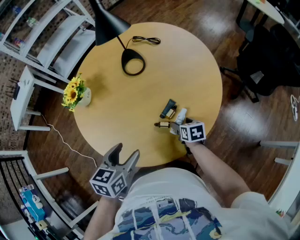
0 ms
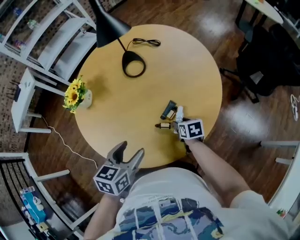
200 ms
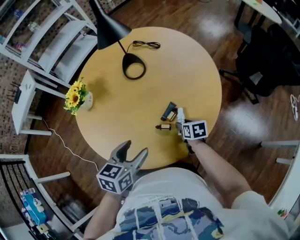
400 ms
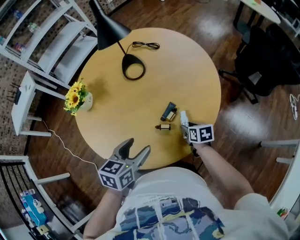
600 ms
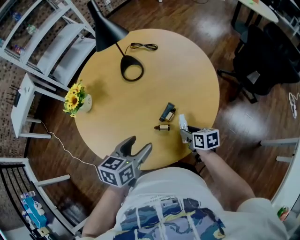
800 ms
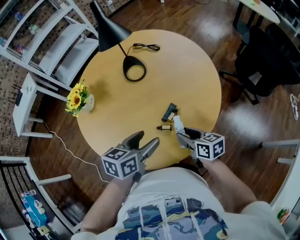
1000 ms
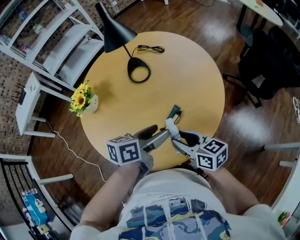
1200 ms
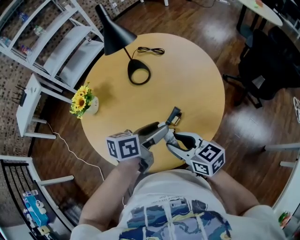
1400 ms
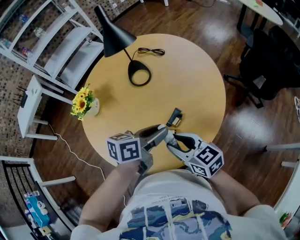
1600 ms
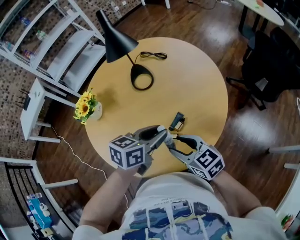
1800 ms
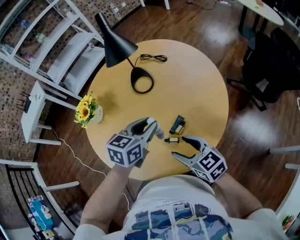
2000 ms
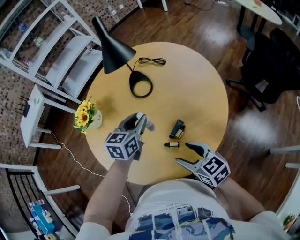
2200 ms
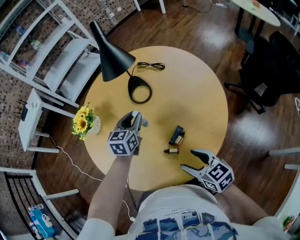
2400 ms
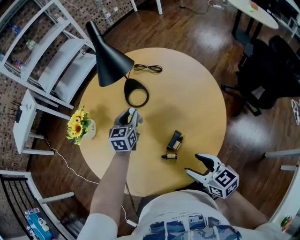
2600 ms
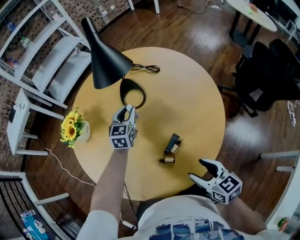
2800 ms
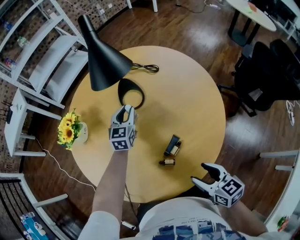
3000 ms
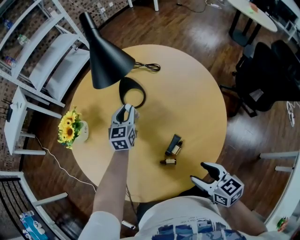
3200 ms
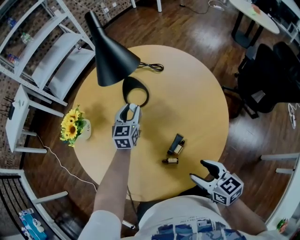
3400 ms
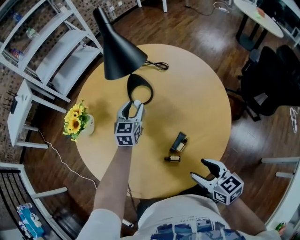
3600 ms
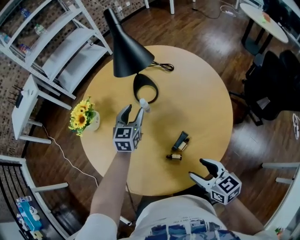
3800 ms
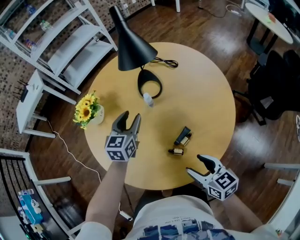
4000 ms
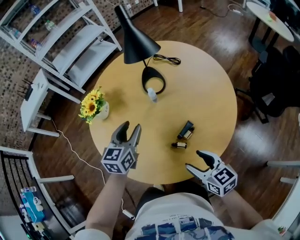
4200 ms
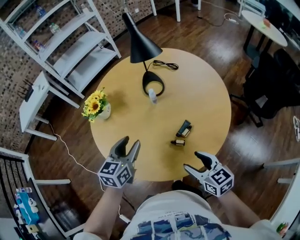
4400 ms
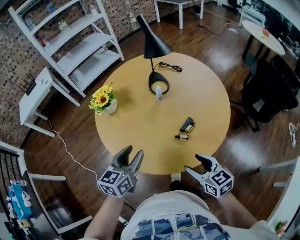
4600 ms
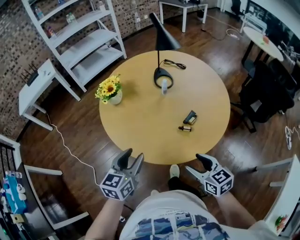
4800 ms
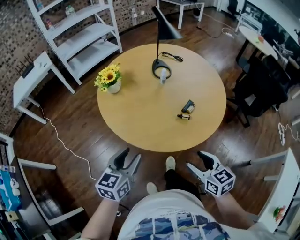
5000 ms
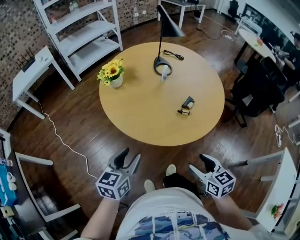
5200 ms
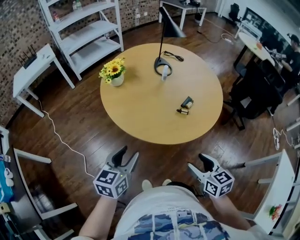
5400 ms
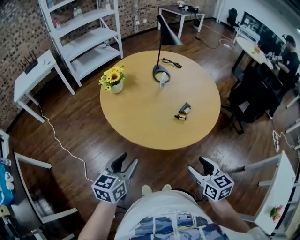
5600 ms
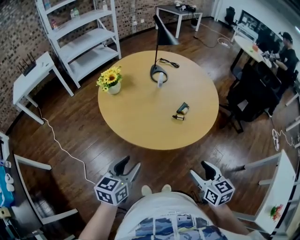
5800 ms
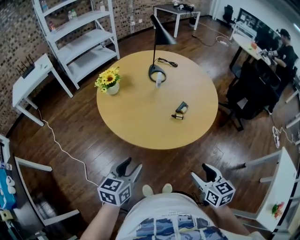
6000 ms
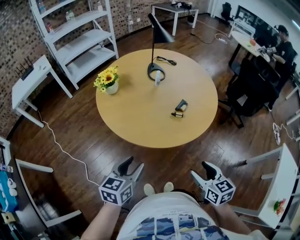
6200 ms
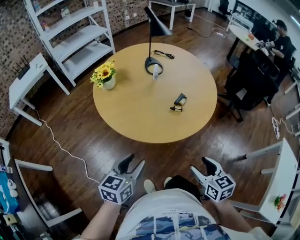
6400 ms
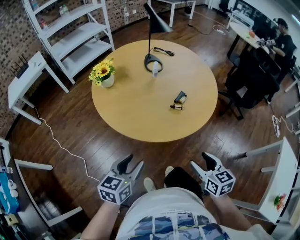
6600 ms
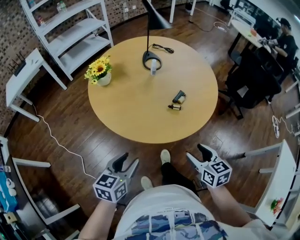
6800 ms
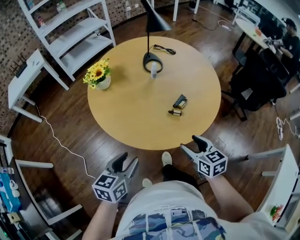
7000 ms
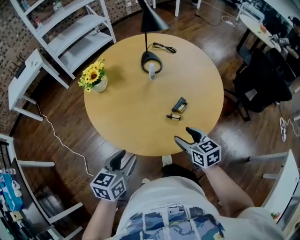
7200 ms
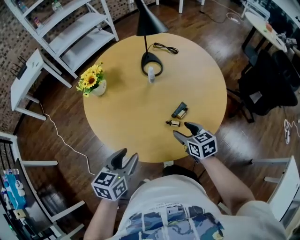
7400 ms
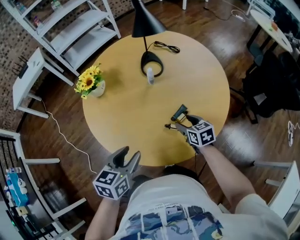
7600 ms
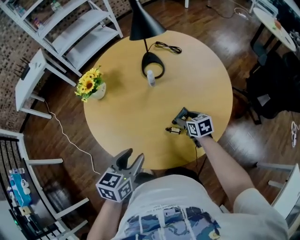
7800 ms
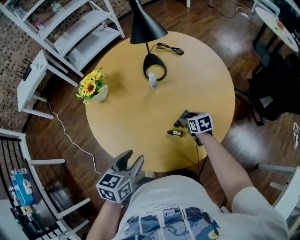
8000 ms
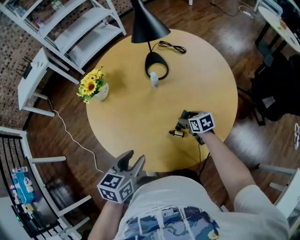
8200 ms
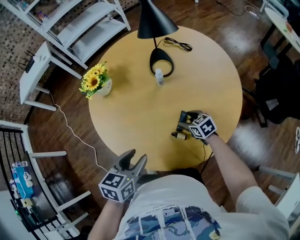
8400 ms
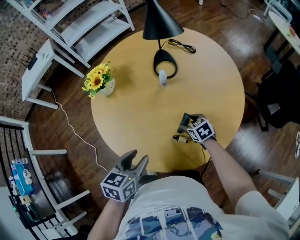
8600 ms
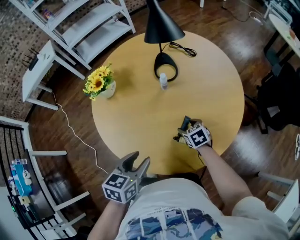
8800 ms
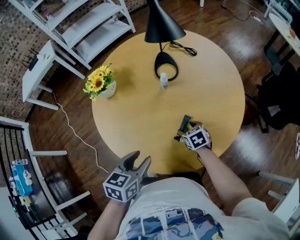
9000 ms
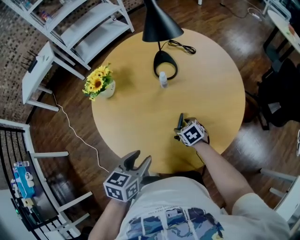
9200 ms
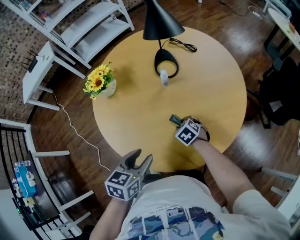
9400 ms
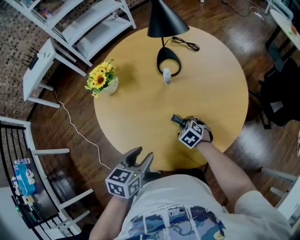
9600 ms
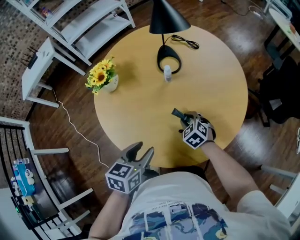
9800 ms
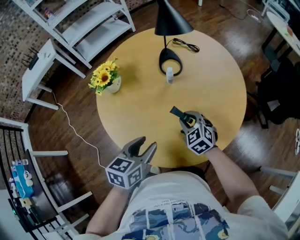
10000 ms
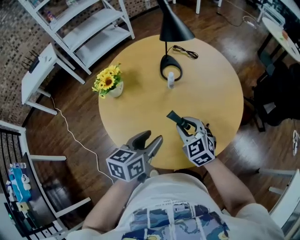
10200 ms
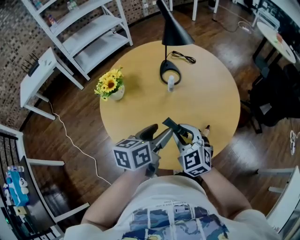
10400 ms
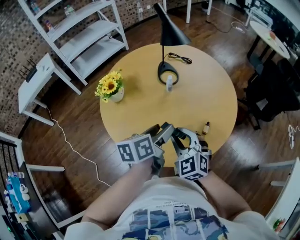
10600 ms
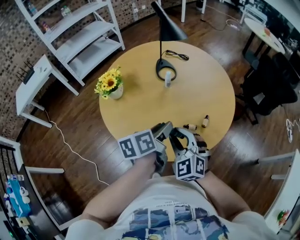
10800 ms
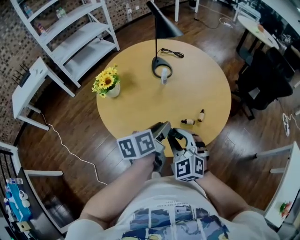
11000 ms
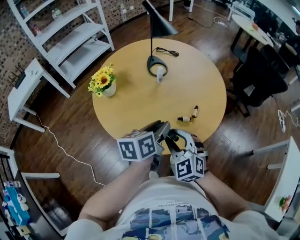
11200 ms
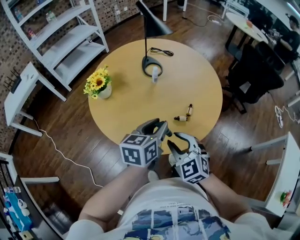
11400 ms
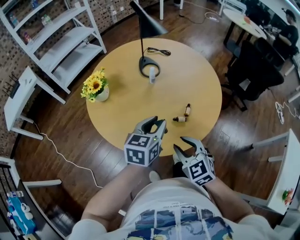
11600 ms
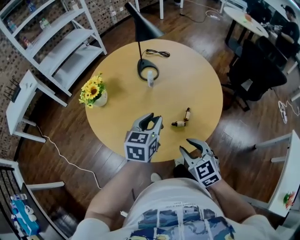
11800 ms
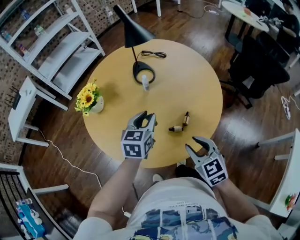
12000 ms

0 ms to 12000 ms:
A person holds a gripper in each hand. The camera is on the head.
0 ms to 1600 ms: The left gripper shifts some 15 cm to the right and forward, swivels roughly 30 degrees, and closes its fingers, while the right gripper goes about 20 cm upward, tilts its fingers some 30 degrees upward, and closes.
1600 ms to 3000 ms: The right gripper travels to the right and downward by about 10 cm, and opens; the left gripper is displaced forward by some 30 cm, and changes its angle by some 50 degrees.
3000 ms to 4400 ms: The right gripper is displaced to the left by some 10 cm. Meanwhile the left gripper heads backward, to the left and upward, covering approximately 35 cm.
4400 ms to 6000 ms: The two grippers go some 30 cm backward.
6000 ms to 7600 ms: The right gripper is displaced forward by approximately 40 cm, while the left gripper moves forward and to the right, roughly 25 cm.
7600 ms to 9000 ms: The right gripper heads downward, covering approximately 10 cm.
9000 ms to 10400 ms: The right gripper heads upward and to the left, covering approximately 25 cm, changes its angle by roughly 40 degrees, and closes its fingers. Meanwhile the left gripper is displaced upward by some 5 cm, and changes its angle by approximately 20 degrees.
10400 ms to 12000 ms: The left gripper shifts about 5 cm forward, rotates some 30 degrees, and closes its fingers. Meanwhile the right gripper heads to the right and backward, covering some 15 cm, and changes its angle by roughly 20 degrees.

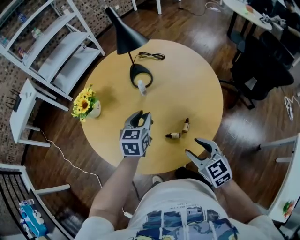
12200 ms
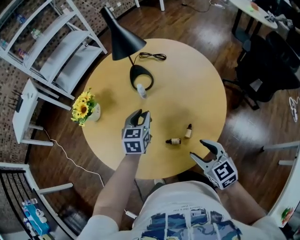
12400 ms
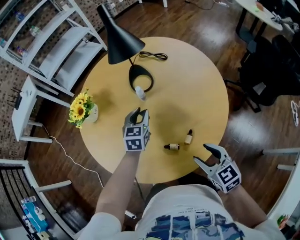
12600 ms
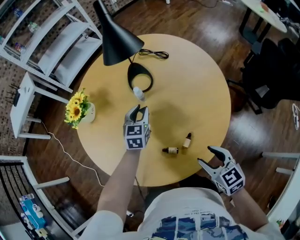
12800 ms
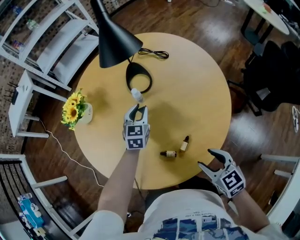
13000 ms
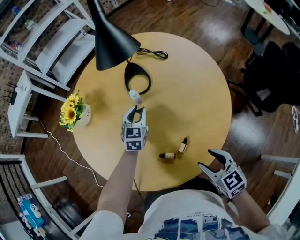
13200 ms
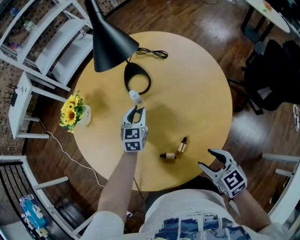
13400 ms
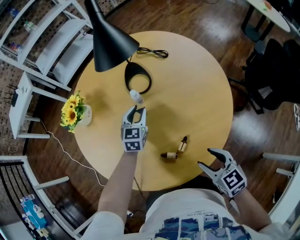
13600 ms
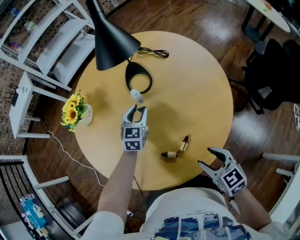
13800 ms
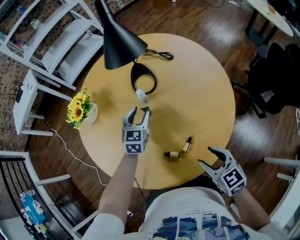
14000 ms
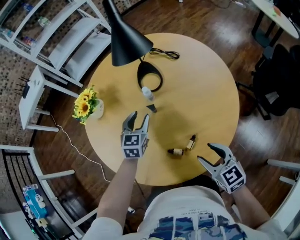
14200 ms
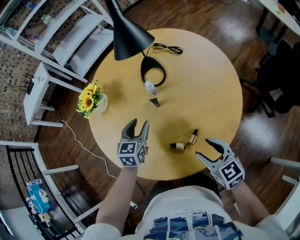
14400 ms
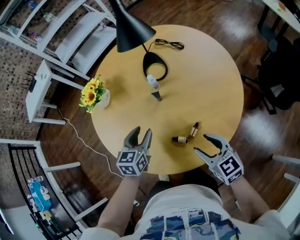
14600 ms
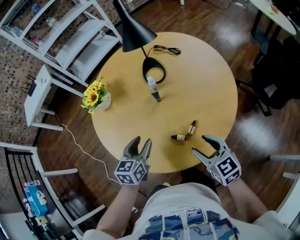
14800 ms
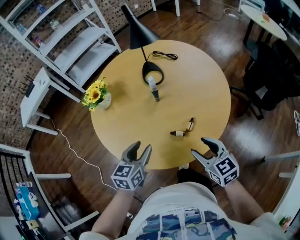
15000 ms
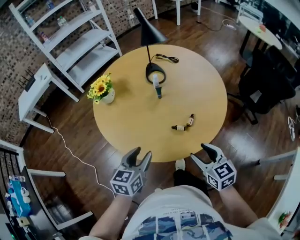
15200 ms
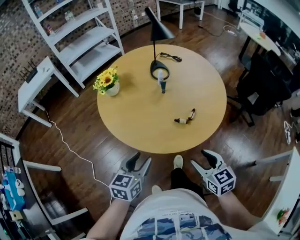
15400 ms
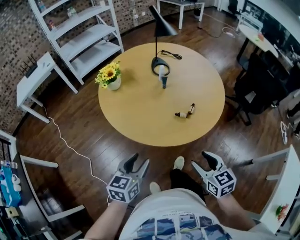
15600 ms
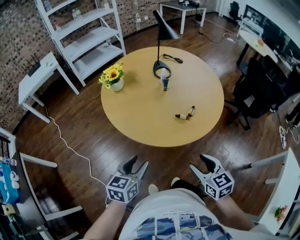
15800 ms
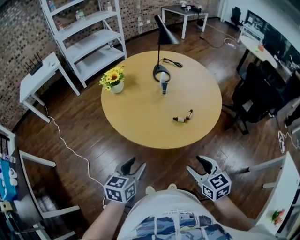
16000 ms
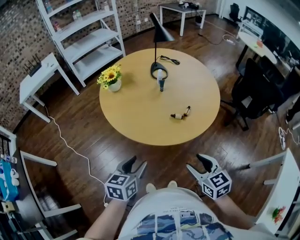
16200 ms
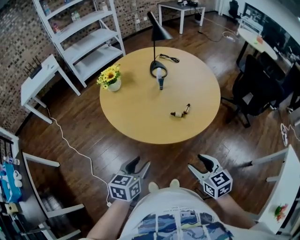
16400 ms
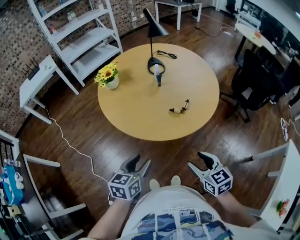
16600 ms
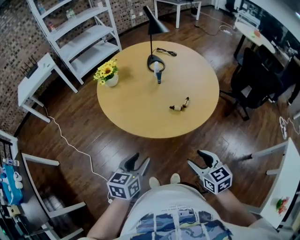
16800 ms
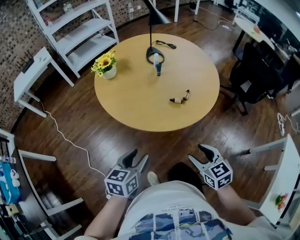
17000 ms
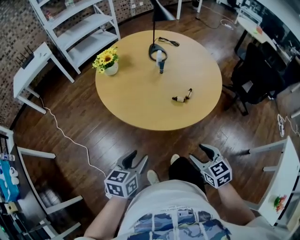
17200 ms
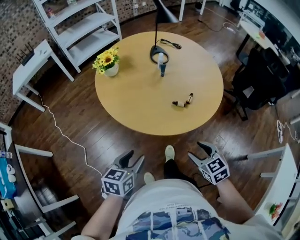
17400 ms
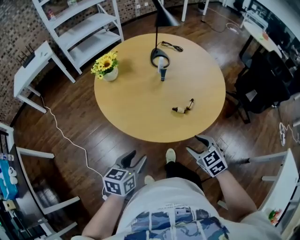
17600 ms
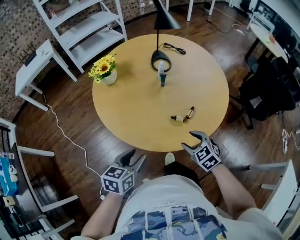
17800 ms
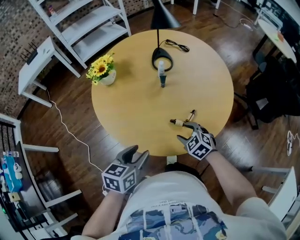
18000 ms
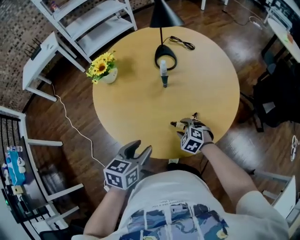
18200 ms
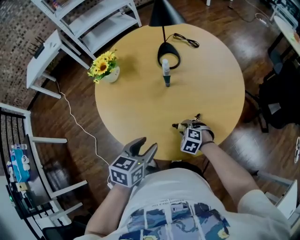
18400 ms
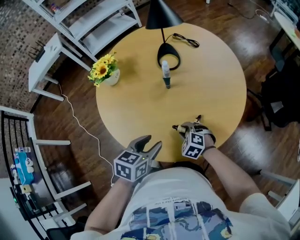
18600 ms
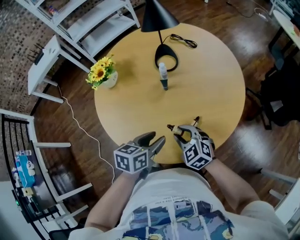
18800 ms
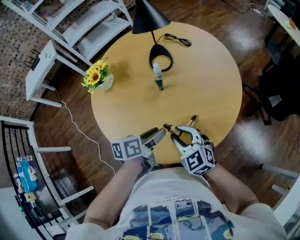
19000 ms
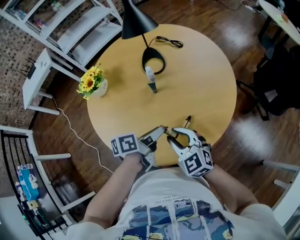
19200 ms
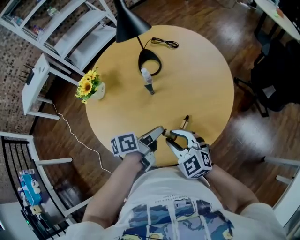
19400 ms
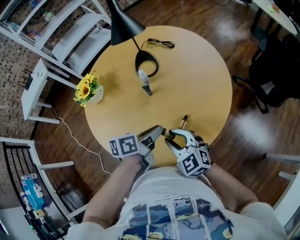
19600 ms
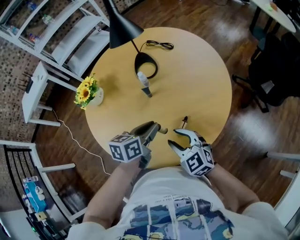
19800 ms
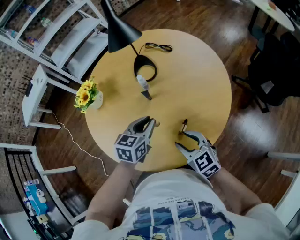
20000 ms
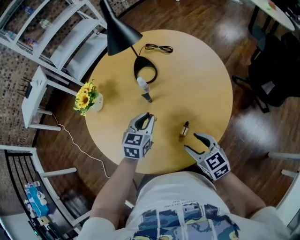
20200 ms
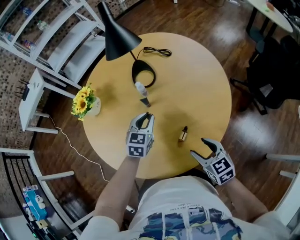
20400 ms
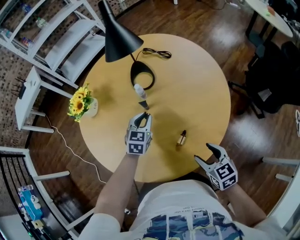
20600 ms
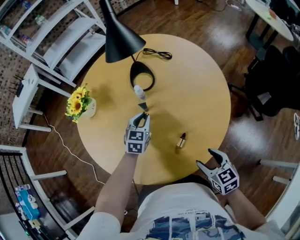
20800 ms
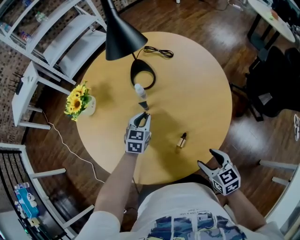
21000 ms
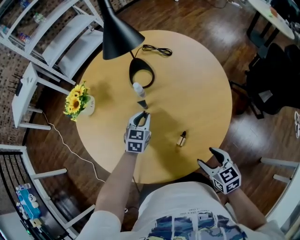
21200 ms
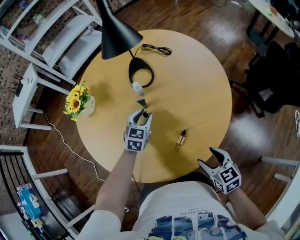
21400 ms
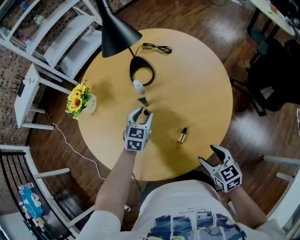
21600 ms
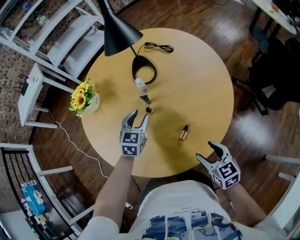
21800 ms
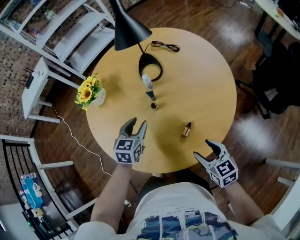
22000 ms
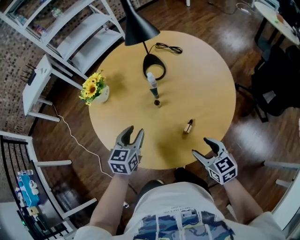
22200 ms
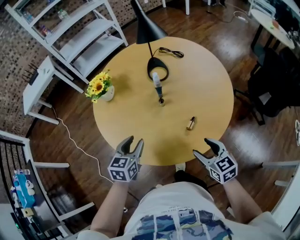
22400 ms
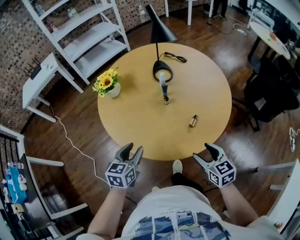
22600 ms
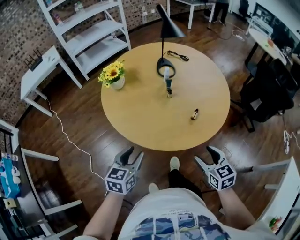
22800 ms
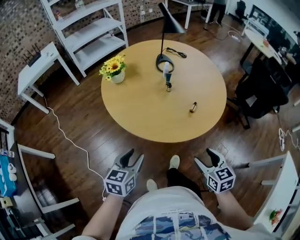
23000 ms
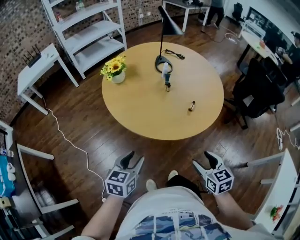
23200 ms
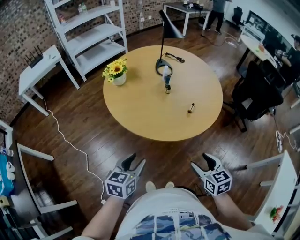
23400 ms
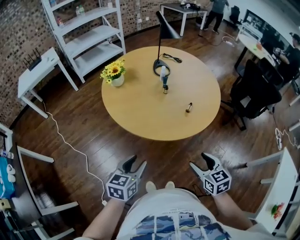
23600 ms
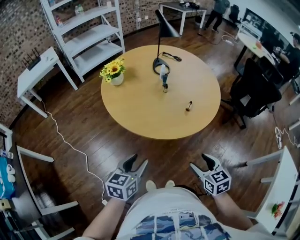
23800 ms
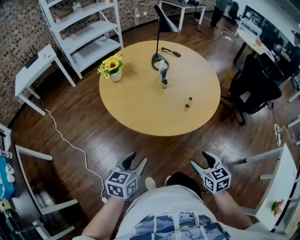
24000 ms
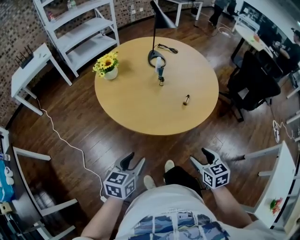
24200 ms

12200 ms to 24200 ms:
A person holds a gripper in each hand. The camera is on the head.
12200 ms to 13800 ms: The right gripper is displaced to the right, forward and downward by about 15 cm, while the left gripper is displaced forward and downward by approximately 20 cm.
13800 ms to 15200 ms: The right gripper shifts some 20 cm backward, to the left and upward. The left gripper travels backward and to the left by approximately 40 cm.
15200 ms to 16600 ms: The grippers both shift backward by approximately 20 cm.
16600 ms to 18200 ms: The left gripper heads forward, covering about 20 cm. Meanwhile the right gripper heads forward and downward, covering about 40 cm, and rolls counterclockwise, seen from behind, by roughly 50 degrees.
18200 ms to 19800 ms: The right gripper shifts about 15 cm upward, and angles its fingers upward, by about 30 degrees, while the left gripper is displaced forward and to the right by some 20 cm, and closes.
19800 ms to 21200 ms: The right gripper shifts about 15 cm to the right, and changes its angle by roughly 30 degrees. The left gripper shifts about 20 cm forward and downward, and rotates about 40 degrees.
21200 ms to 22600 ms: The left gripper goes approximately 40 cm backward, to the left and upward. The right gripper heads to the left, backward and upward, covering roughly 20 cm.
22600 ms to 24200 ms: Both grippers travel together backward, approximately 20 cm.
